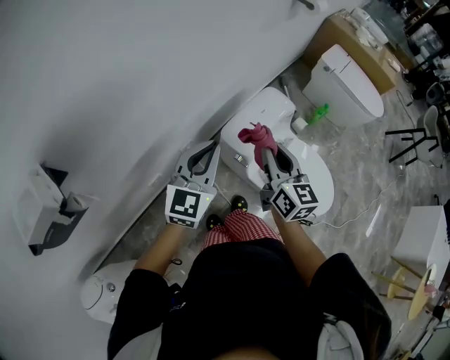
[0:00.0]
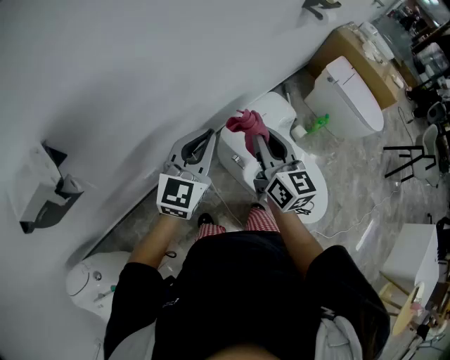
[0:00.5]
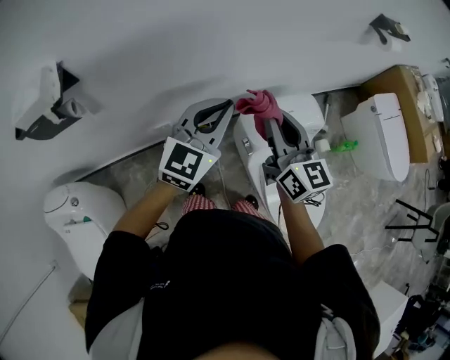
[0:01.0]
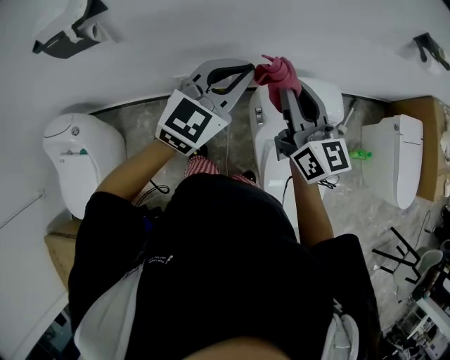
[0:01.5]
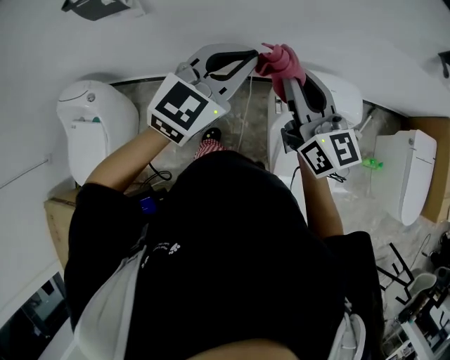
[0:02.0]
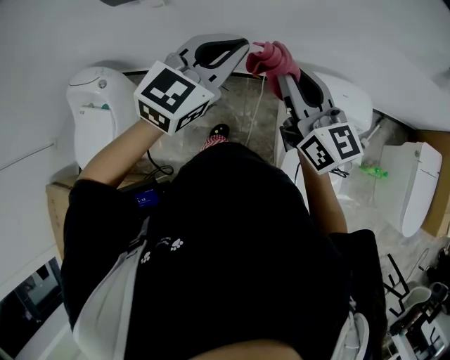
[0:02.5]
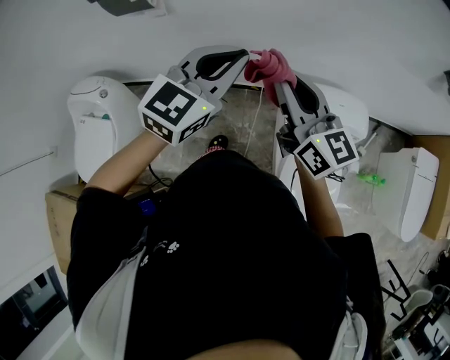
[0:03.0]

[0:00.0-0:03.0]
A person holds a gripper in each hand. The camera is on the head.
0:00.0 to 0:01.5: The grippers both shift upward by about 5 cm. The left gripper swivels approximately 20 degrees. The right gripper rotates roughly 50 degrees.
0:01.5 to 0:03.0: The grippers both shift to the left by roughly 10 cm.

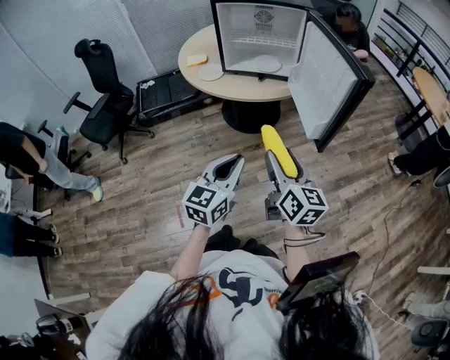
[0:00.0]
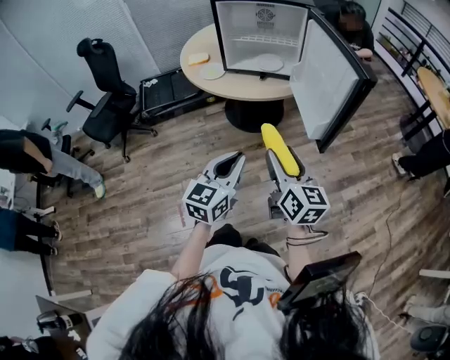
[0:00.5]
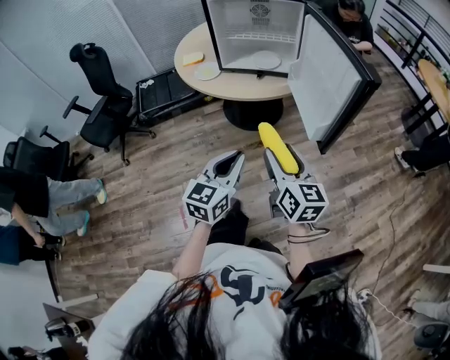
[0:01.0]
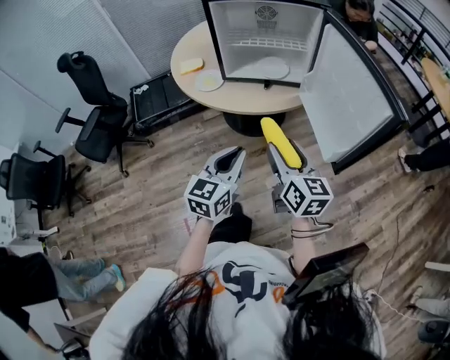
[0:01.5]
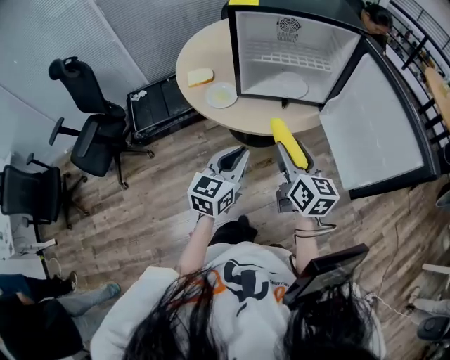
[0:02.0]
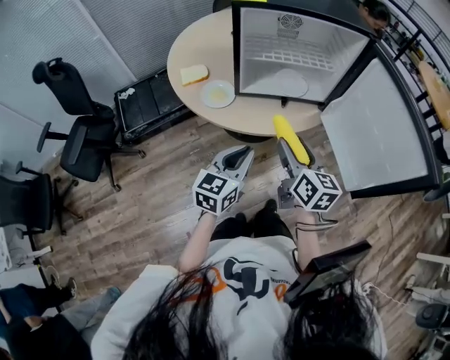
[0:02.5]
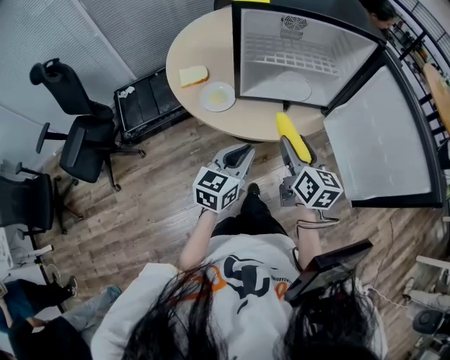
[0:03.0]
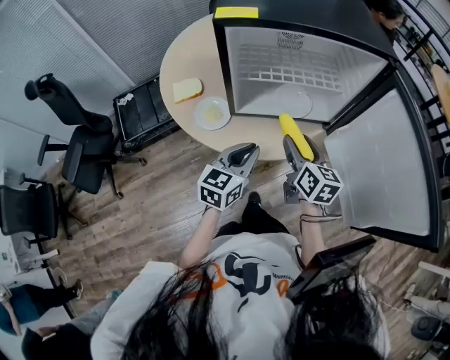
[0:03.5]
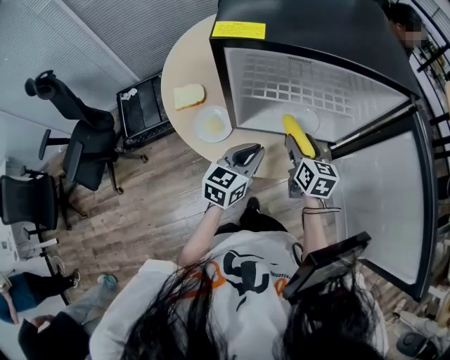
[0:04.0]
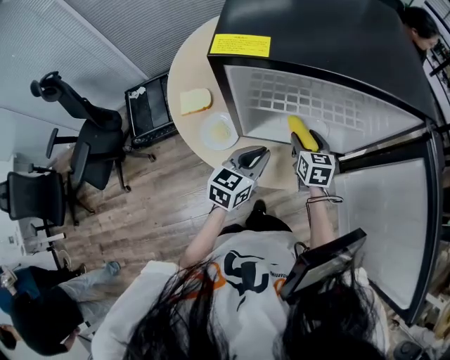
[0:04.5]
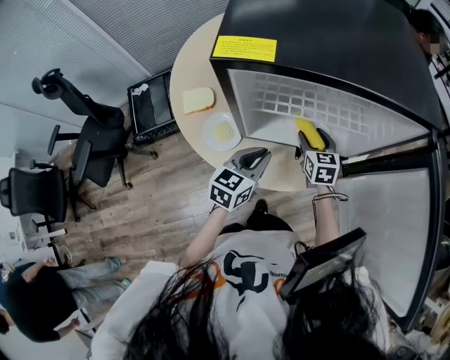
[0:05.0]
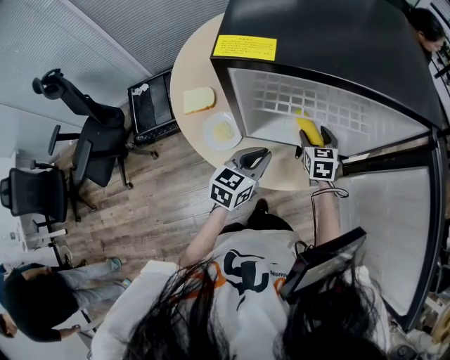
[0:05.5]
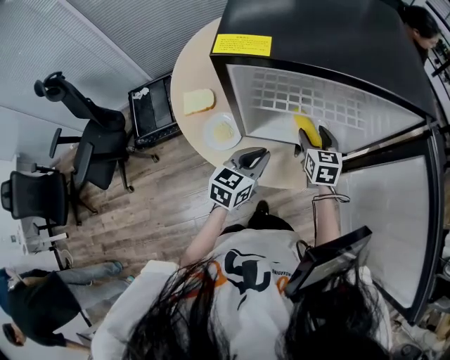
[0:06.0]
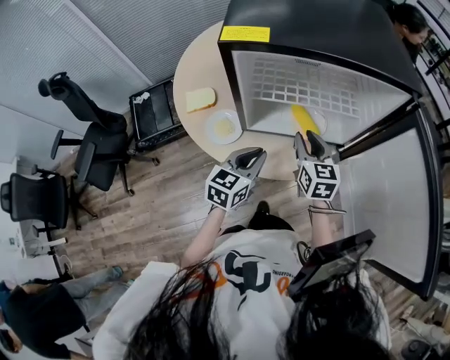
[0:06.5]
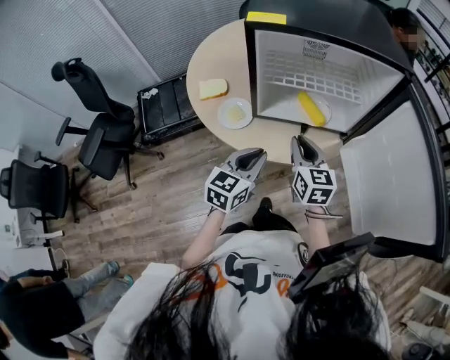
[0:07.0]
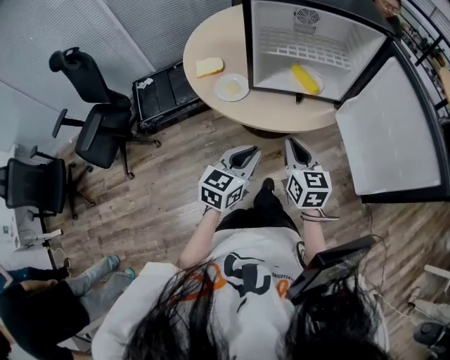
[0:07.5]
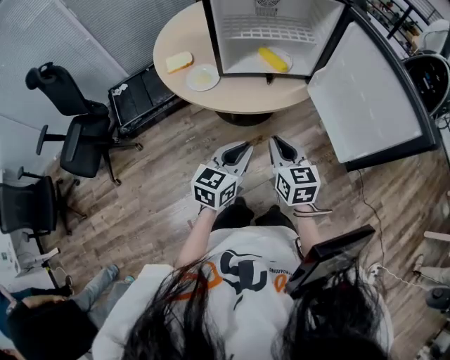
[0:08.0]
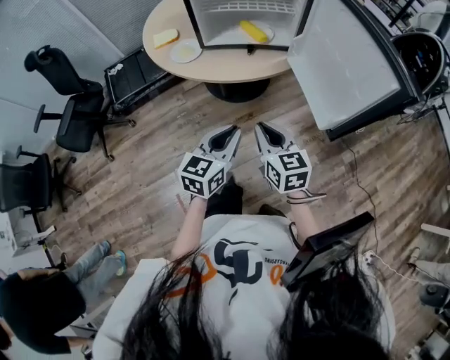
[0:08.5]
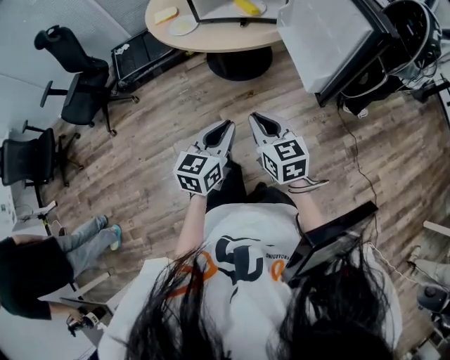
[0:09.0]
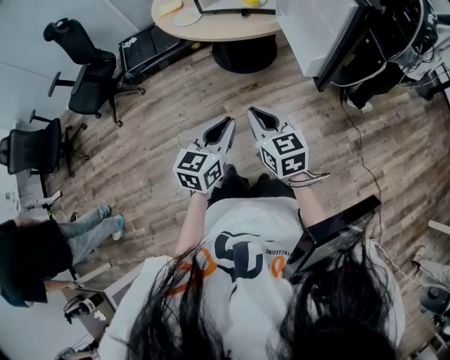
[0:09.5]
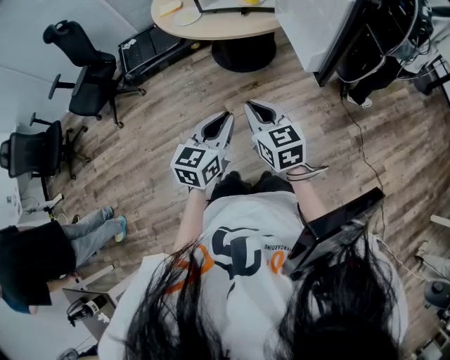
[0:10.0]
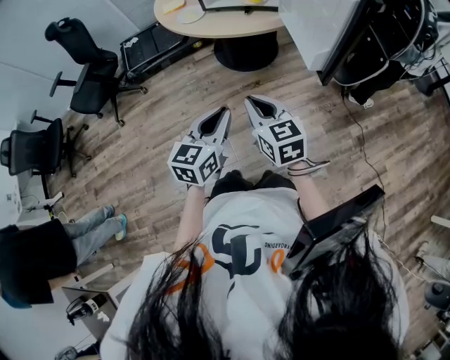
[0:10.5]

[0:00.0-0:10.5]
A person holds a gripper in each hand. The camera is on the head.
0:00.0 to 0:02.0: The two grippers go roughly 30 cm forward and to the left.
0:02.0 to 0:04.0: The left gripper is displaced forward by some 25 cm. Meanwhile the right gripper goes about 30 cm forward and downward.
0:04.0 to 0:06.5: The right gripper moves approximately 5 cm downward and comes back, and closes up.
0:06.5 to 0:08.5: Both grippers move backward, some 30 cm.
0:08.5 to 0:10.5: The grippers both shift backward by some 15 cm.

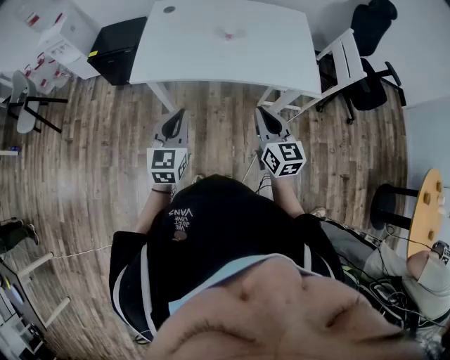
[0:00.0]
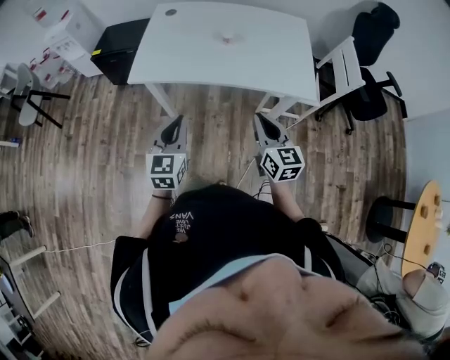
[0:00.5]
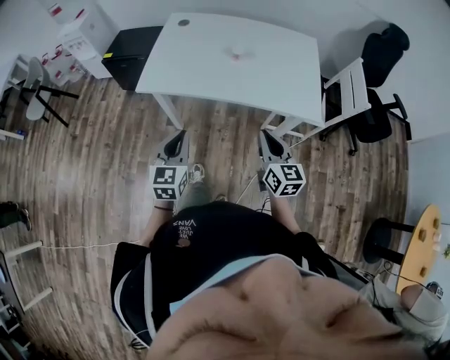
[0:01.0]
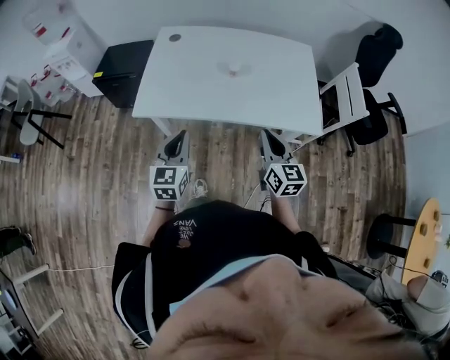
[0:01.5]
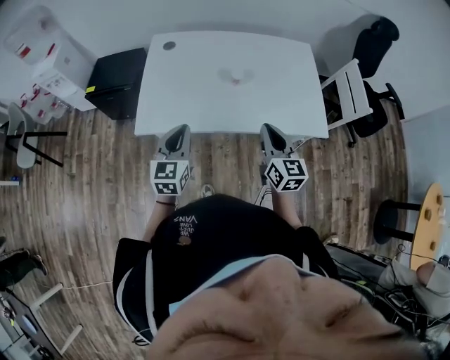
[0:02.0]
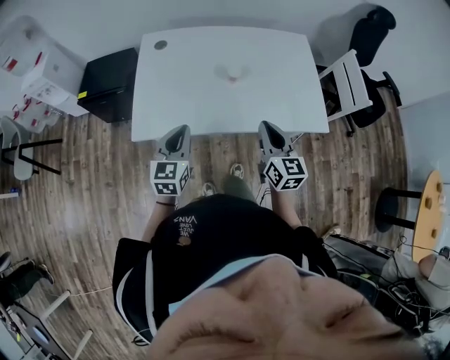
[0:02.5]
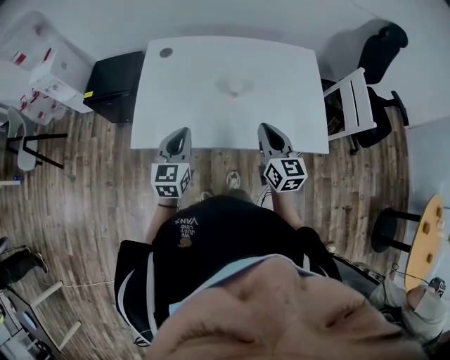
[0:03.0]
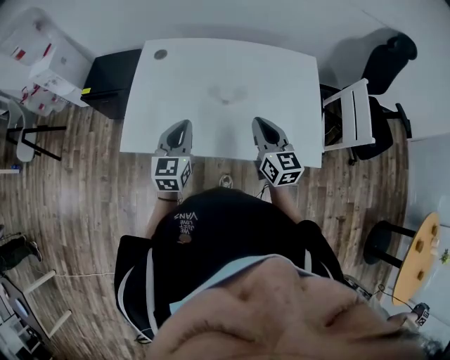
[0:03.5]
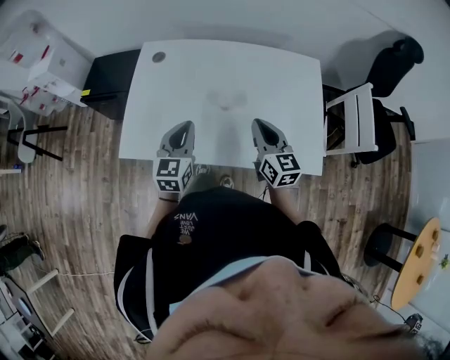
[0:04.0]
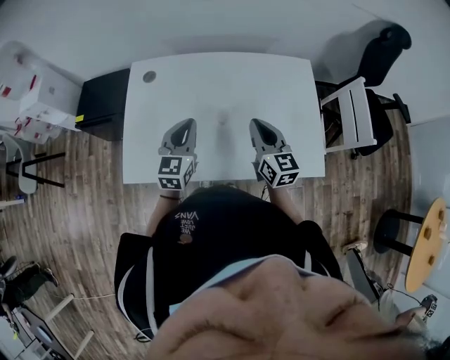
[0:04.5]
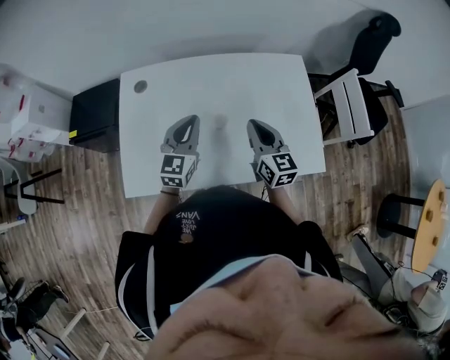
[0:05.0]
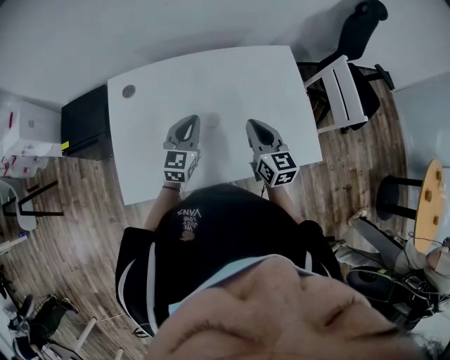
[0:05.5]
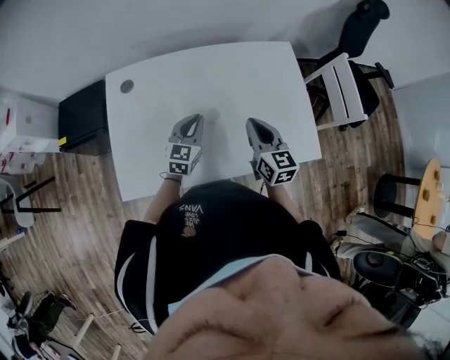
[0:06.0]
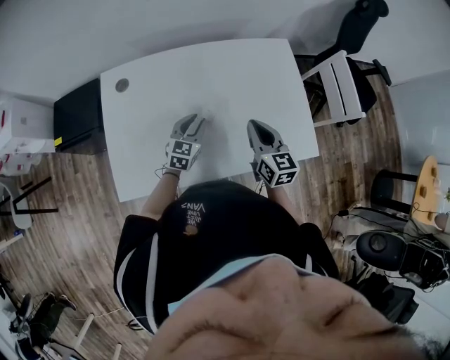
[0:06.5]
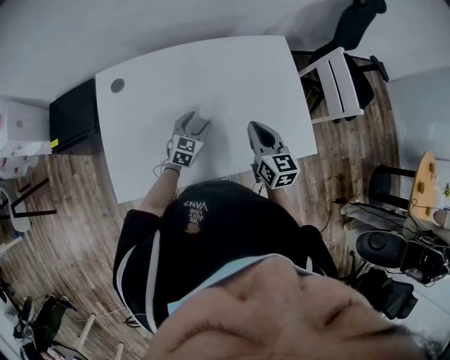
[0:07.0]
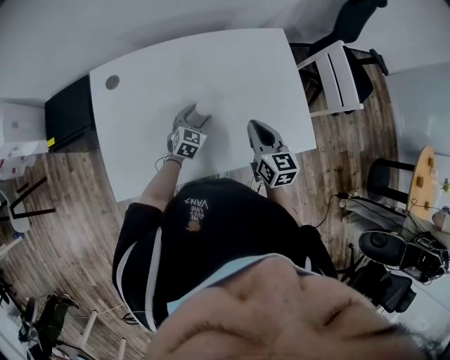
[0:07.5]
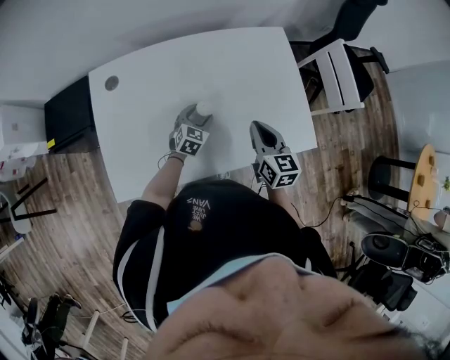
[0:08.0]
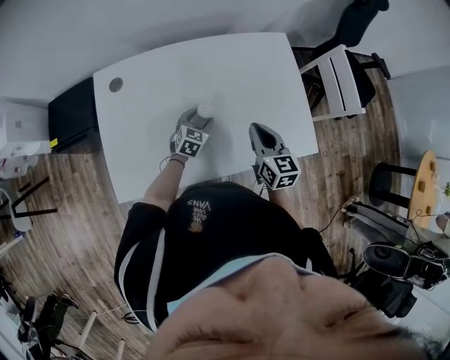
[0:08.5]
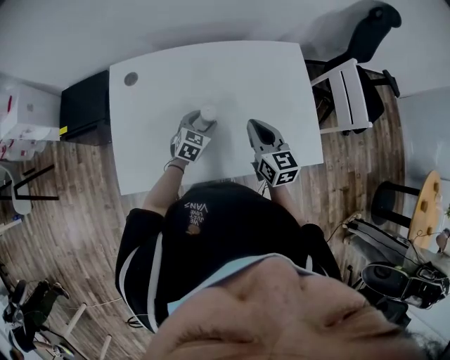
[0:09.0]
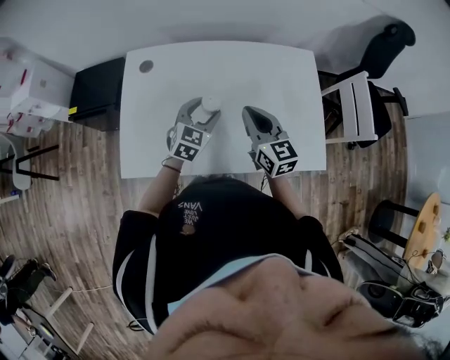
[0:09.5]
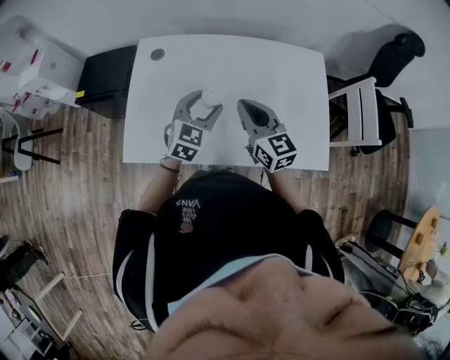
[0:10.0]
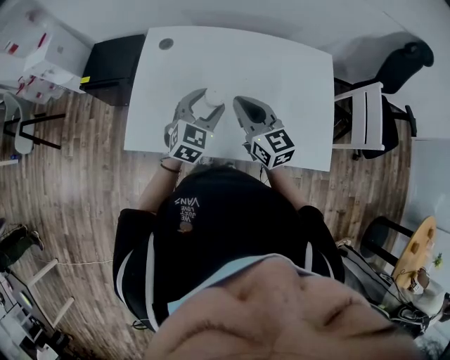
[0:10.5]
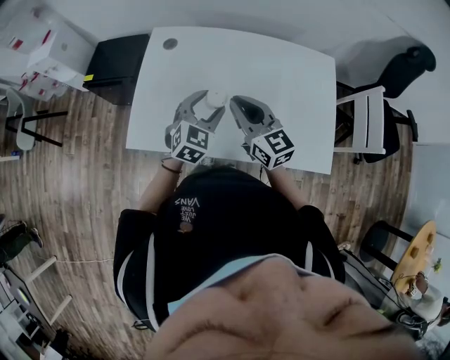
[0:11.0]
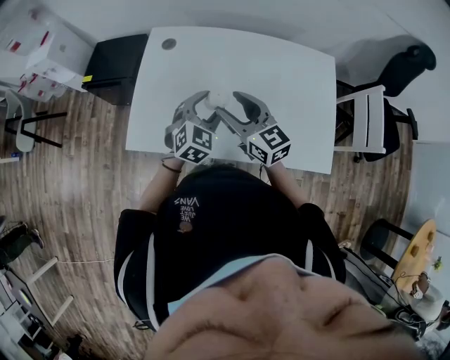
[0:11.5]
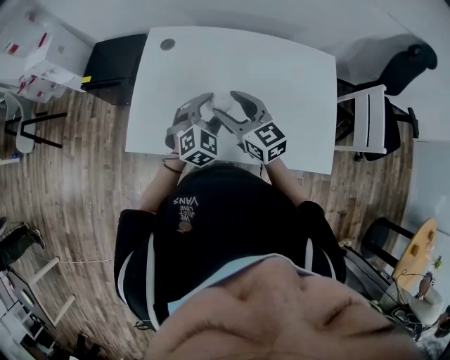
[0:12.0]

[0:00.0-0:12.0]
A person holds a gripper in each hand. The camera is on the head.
0:00.0 to 0:02.0: The grippers both shift forward by some 15 cm.
0:02.0 to 0:04.0: The right gripper heads forward, covering roughly 20 cm. Meanwhile the left gripper is displaced forward and to the right by roughly 20 cm.
0:04.0 to 0:06.0: The left gripper travels forward, downward and to the right by some 15 cm, and rotates about 20 degrees.
0:06.0 to 0:08.0: The left gripper goes approximately 15 cm downward, rotates approximately 20 degrees, and opens its fingers.
0:08.0 to 0:10.0: The left gripper is displaced upward by approximately 20 cm. The right gripper heads to the left and upward, covering about 15 cm, and turns by about 30 degrees.
0:10.0 to 0:12.0: The right gripper travels to the left by about 5 cm, and opens up. The left gripper rotates some 20 degrees.

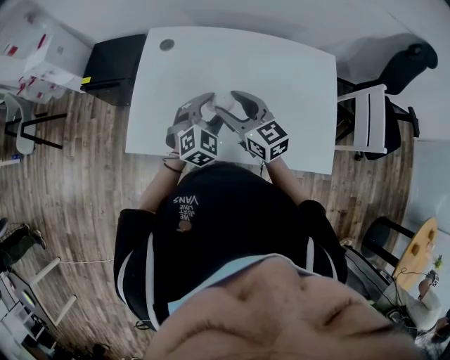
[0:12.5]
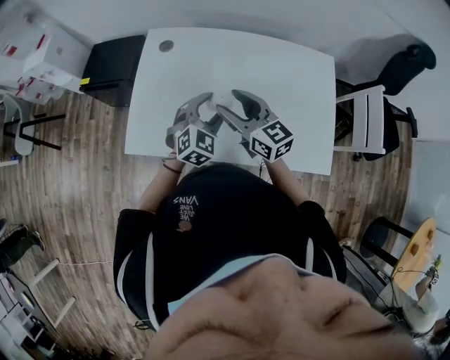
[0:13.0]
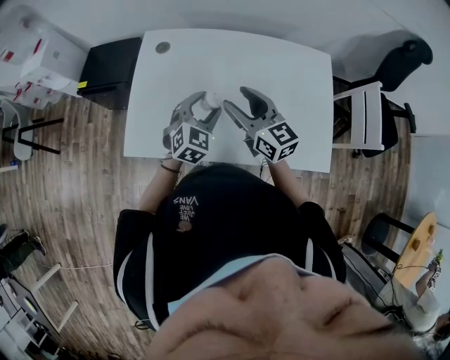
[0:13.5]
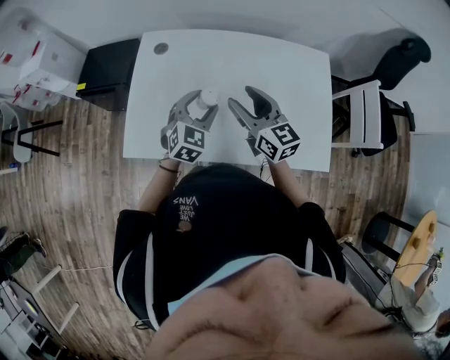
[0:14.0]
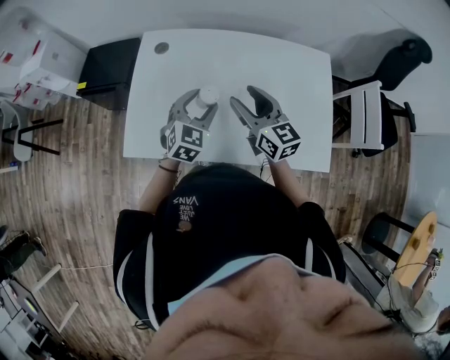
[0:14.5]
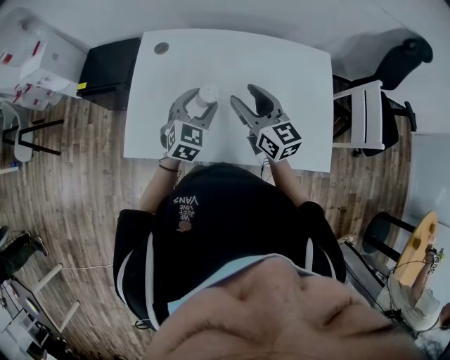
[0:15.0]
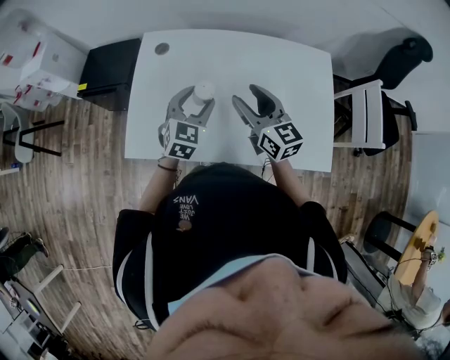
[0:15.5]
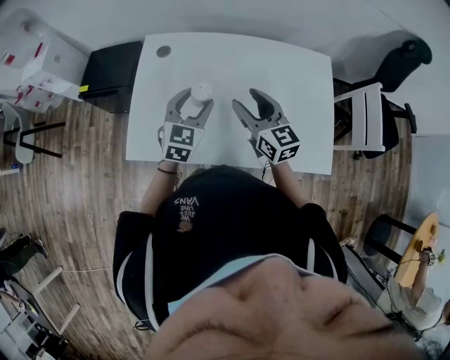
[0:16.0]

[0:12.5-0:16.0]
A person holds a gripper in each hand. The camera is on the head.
0:12.5 to 0:14.5: The right gripper shifts approximately 5 cm to the right.
0:14.5 to 0:16.0: There are only small adjustments of the grippers.
